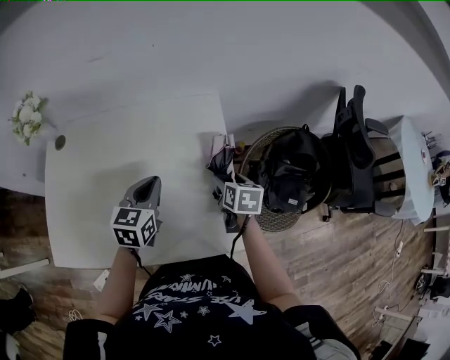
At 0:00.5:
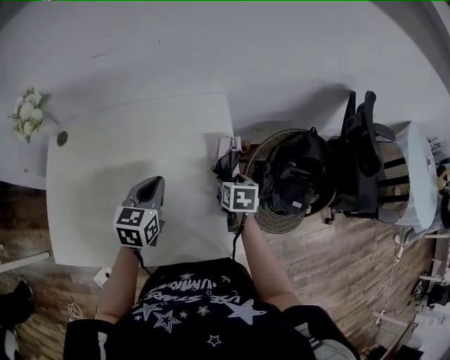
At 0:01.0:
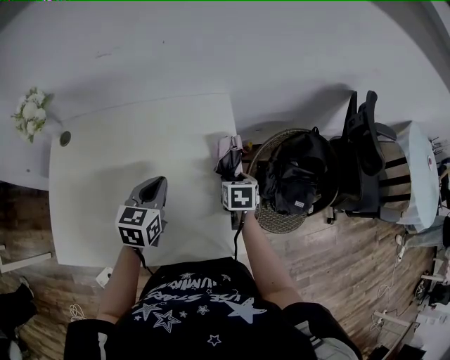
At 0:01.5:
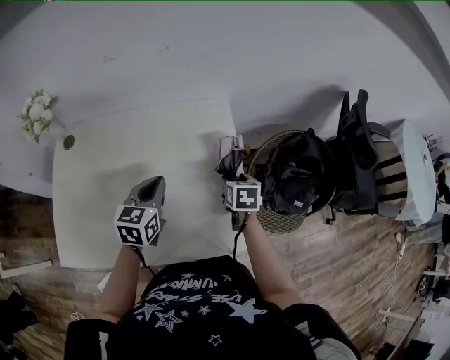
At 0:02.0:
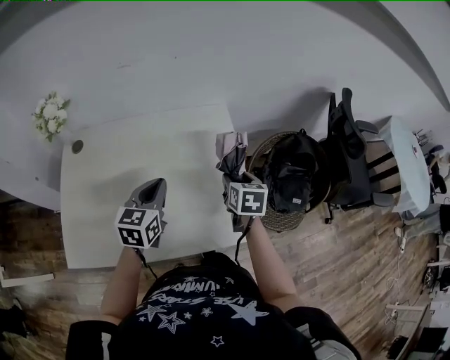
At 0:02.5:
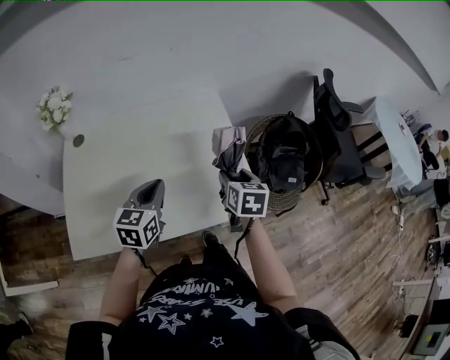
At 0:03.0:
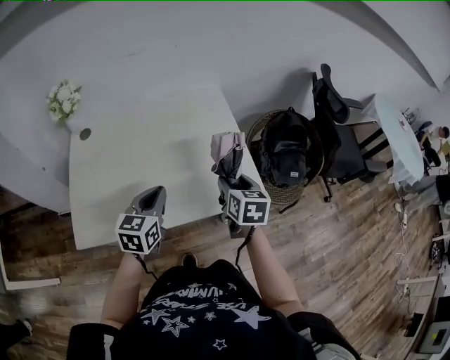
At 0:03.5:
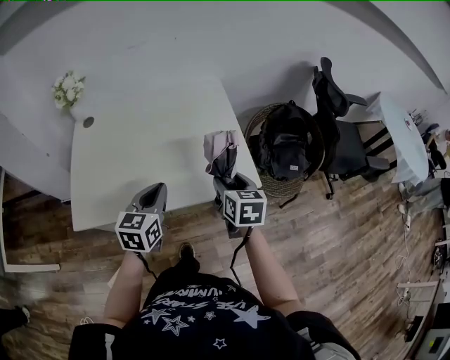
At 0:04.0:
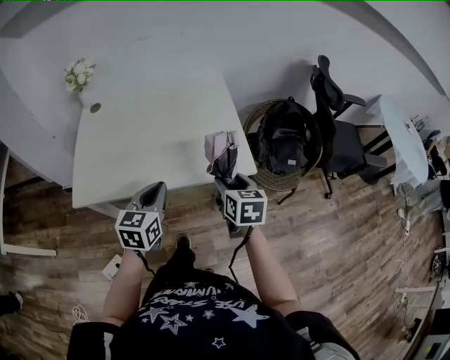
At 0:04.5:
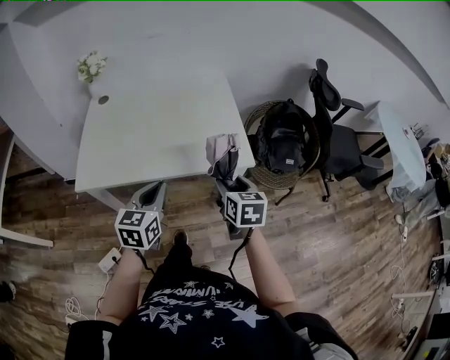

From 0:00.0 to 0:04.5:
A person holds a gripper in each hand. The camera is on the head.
From 0:00.0 to 0:02.0: The right gripper is displaced upward by roughly 5 cm, while the left gripper ends up about 10 cm from where it was.
From 0:02.0 to 0:04.5: Both grippers travel together backward, about 35 cm.

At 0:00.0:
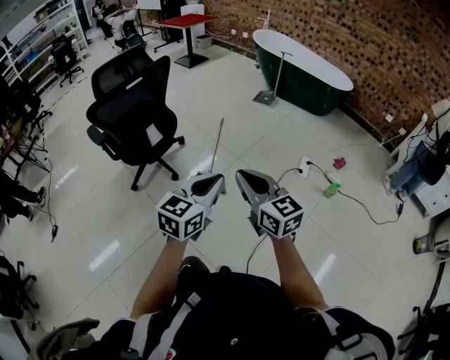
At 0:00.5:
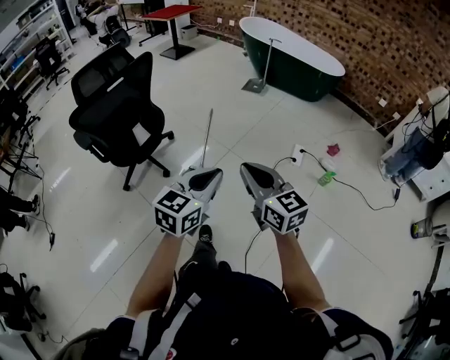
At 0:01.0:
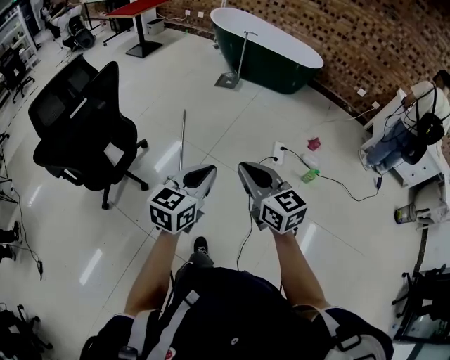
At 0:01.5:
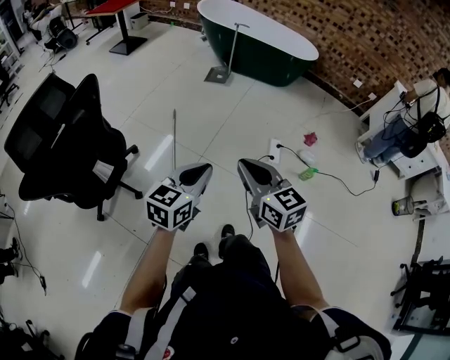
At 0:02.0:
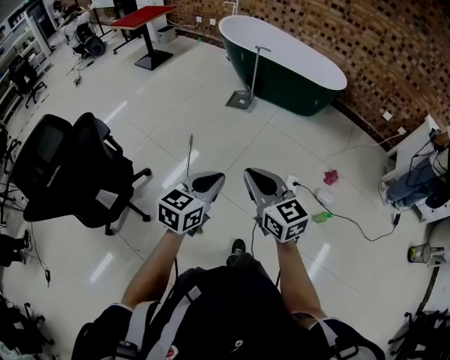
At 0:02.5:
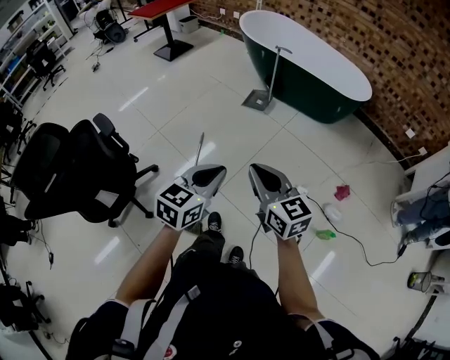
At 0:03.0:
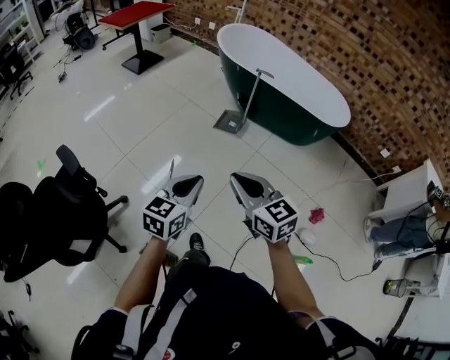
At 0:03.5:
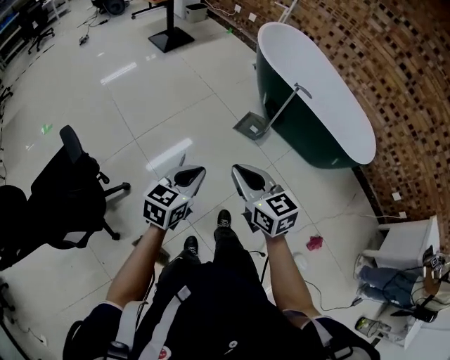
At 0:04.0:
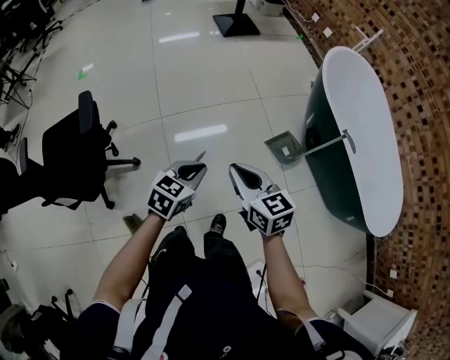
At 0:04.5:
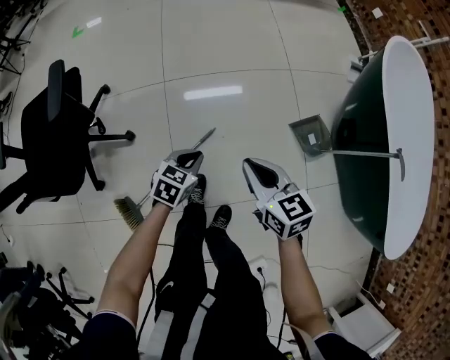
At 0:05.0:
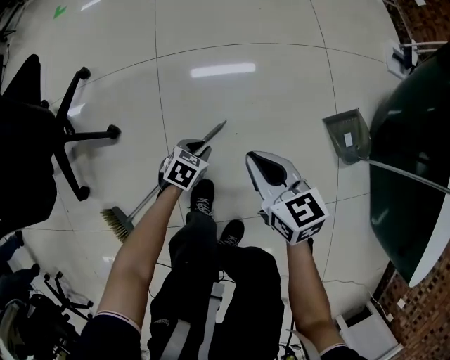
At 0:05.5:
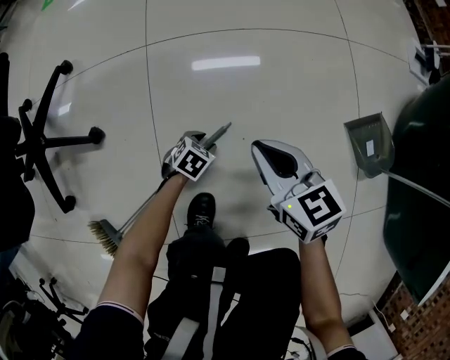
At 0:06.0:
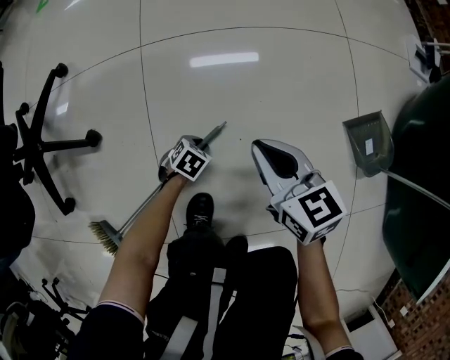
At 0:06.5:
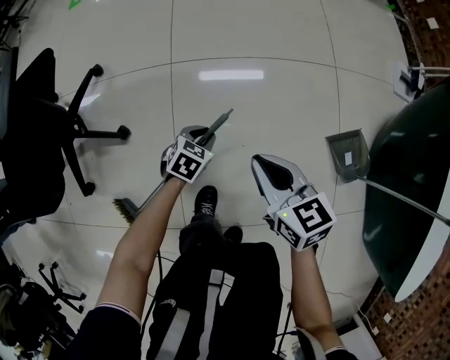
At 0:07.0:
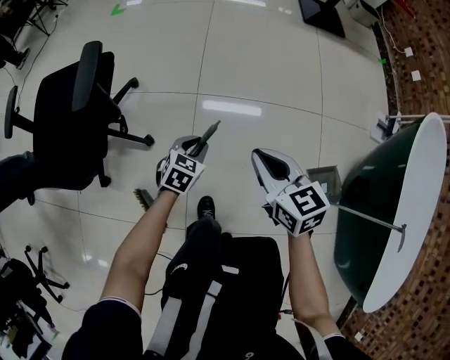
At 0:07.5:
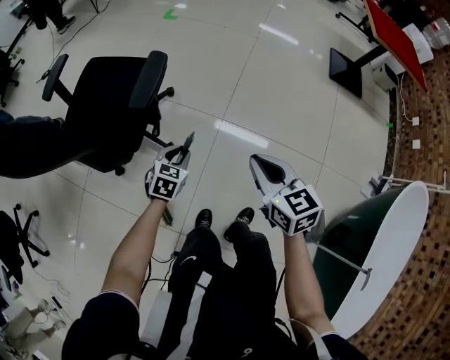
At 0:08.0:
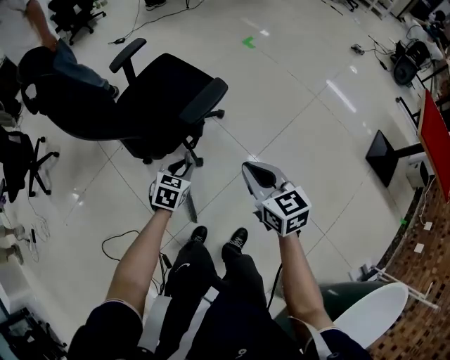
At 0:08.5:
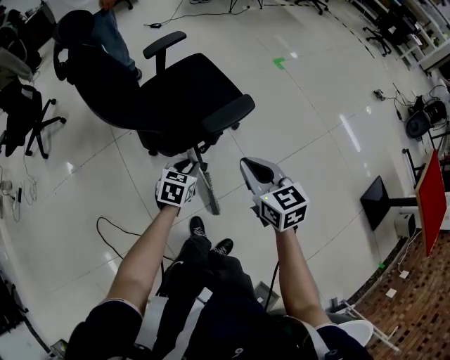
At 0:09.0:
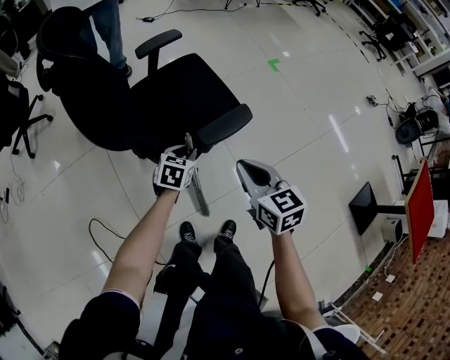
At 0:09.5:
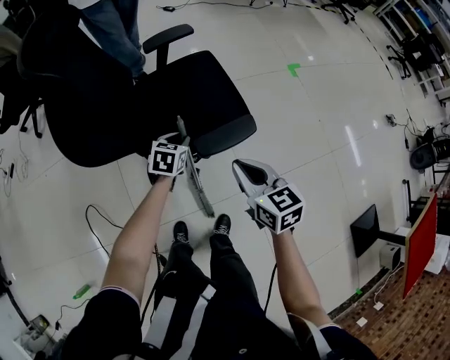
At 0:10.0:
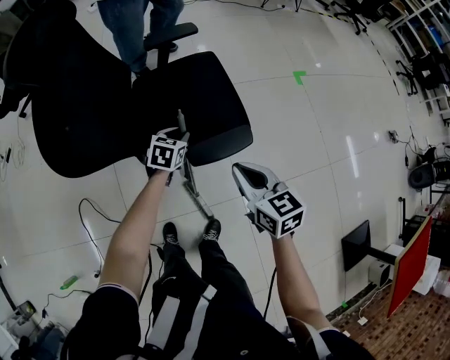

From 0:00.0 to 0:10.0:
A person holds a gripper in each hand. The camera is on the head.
From 0:00.0 to 0:02.0: The pair of grippers is taken forward, roughly 40 cm.
From 0:02.0 to 0:04.0: Both grippers are carried roughly 60 cm. The right gripper changes its angle by approximately 40 degrees. The left gripper rotates roughly 40 degrees.
From 0:04.0 to 0:06.0: The grippers both shift downward by roughly 60 cm. The left gripper tilts its fingers some 30 degrees downward, and opens its fingers.
From 0:06.0 to 0:08.0: Both grippers move upward, roughly 60 cm. The left gripper changes its angle by some 70 degrees, while the right gripper turns by about 50 degrees.
From 0:08.0 to 0:10.0: The left gripper moves some 25 cm, and changes its angle by roughly 30 degrees; the right gripper changes place by roughly 20 cm, and swivels about 30 degrees.

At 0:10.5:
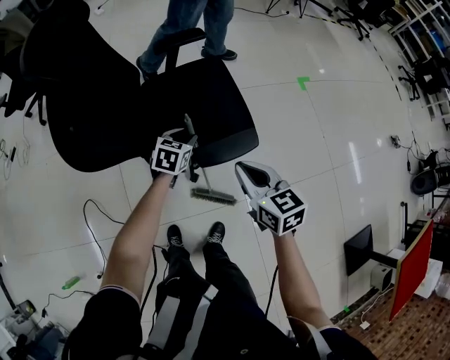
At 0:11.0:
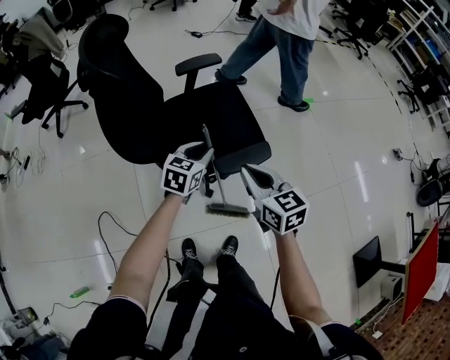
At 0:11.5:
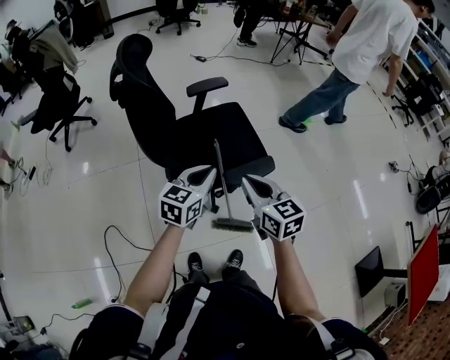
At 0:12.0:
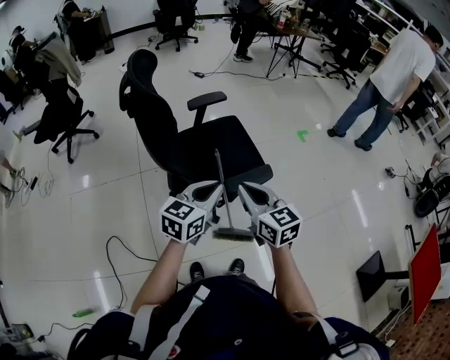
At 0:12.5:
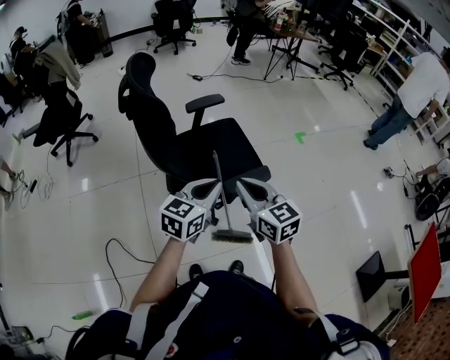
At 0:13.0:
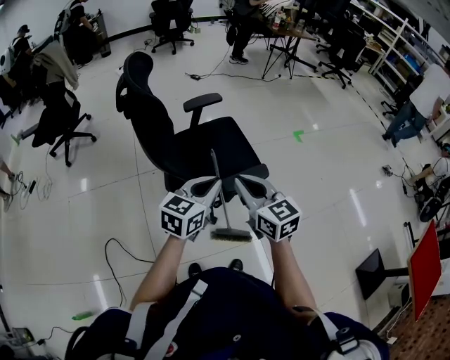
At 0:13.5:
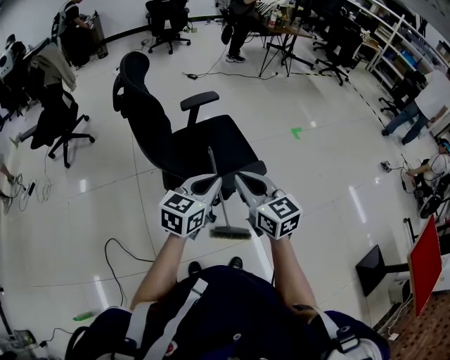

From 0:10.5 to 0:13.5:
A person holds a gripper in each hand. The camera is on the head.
From 0:10.5 to 0:12.0: The left gripper travels upward and backward by approximately 30 cm, swivels some 30 degrees, and closes, while the right gripper moves upward, to the left and backward, some 15 cm.
From 0:12.0 to 0:13.5: The grippers move only a little.

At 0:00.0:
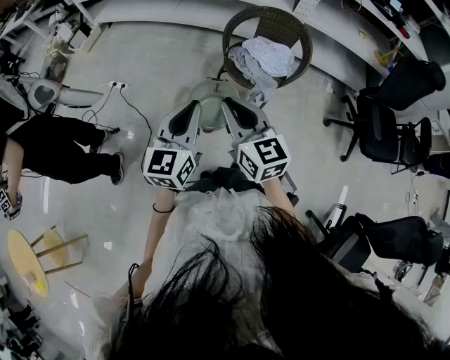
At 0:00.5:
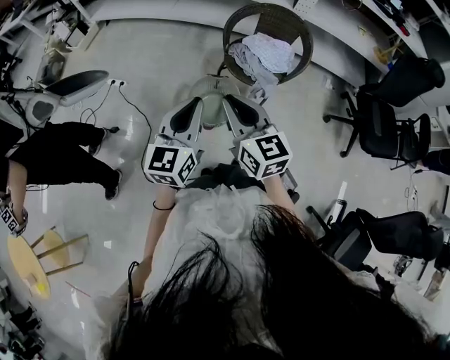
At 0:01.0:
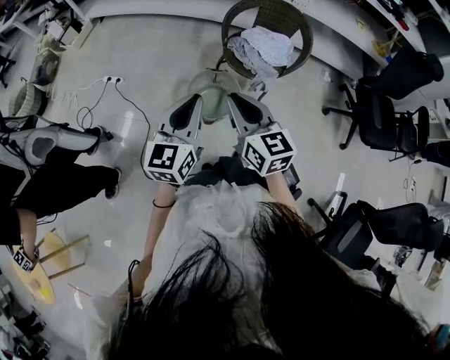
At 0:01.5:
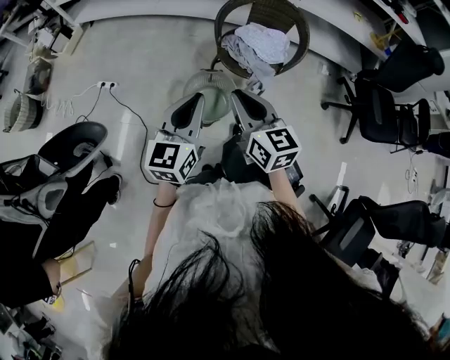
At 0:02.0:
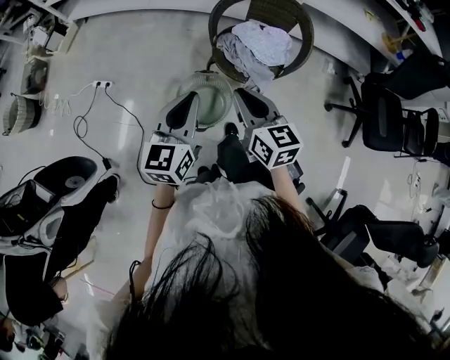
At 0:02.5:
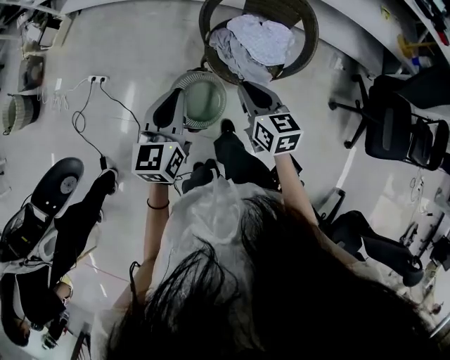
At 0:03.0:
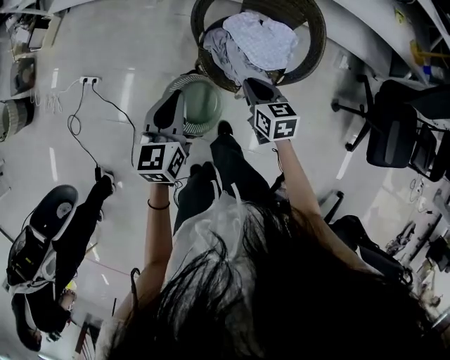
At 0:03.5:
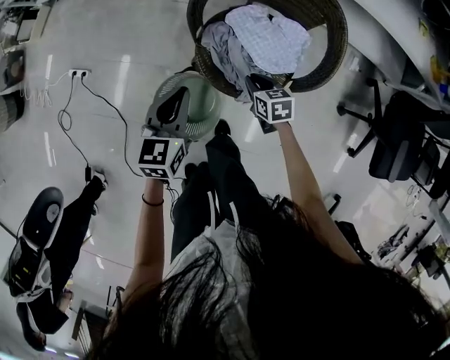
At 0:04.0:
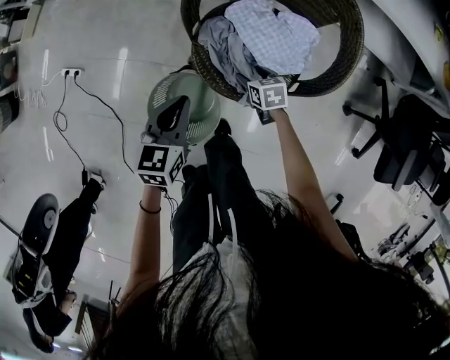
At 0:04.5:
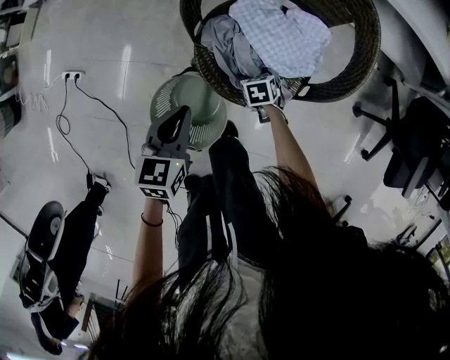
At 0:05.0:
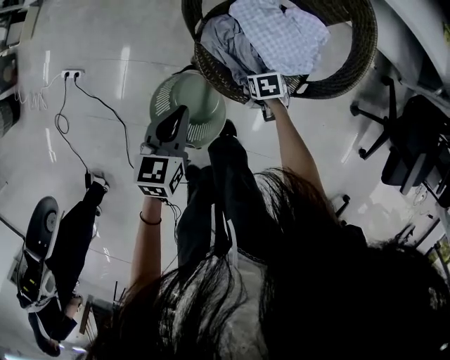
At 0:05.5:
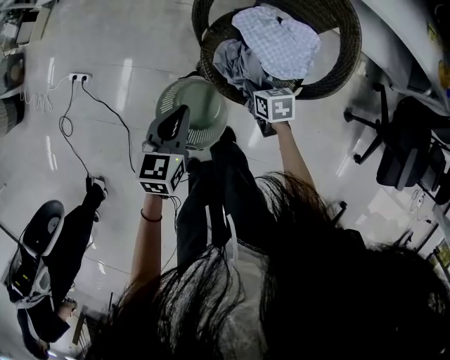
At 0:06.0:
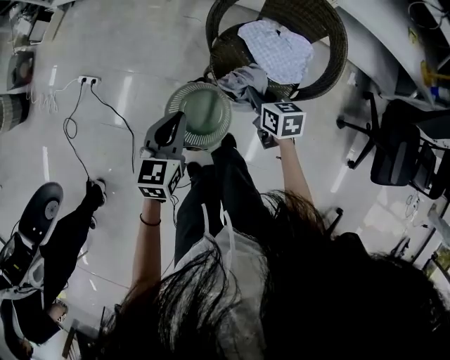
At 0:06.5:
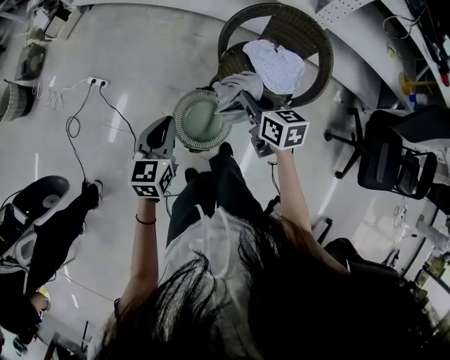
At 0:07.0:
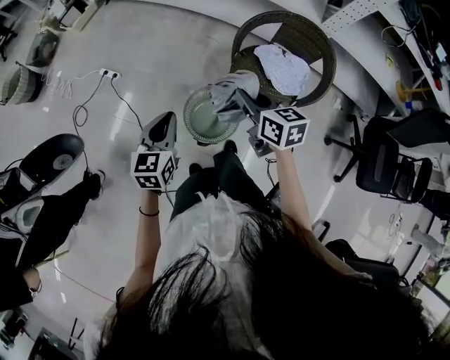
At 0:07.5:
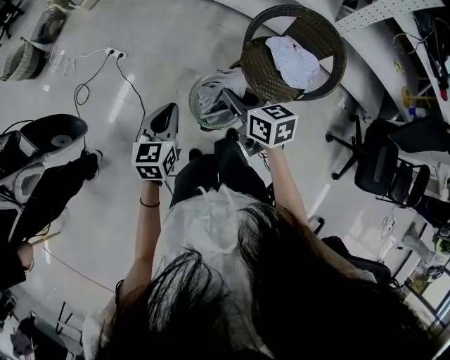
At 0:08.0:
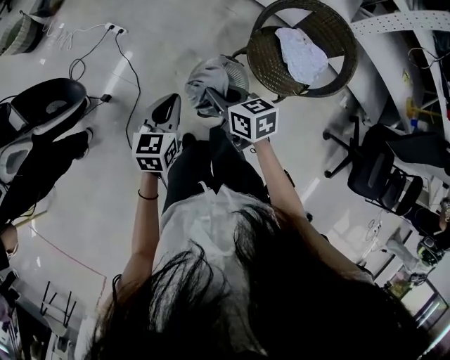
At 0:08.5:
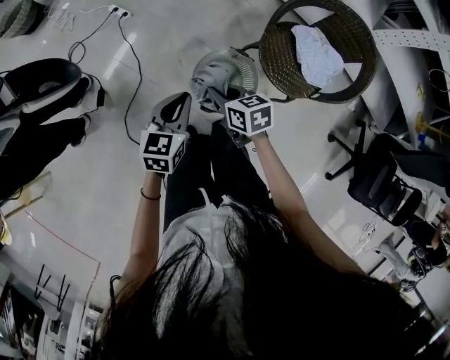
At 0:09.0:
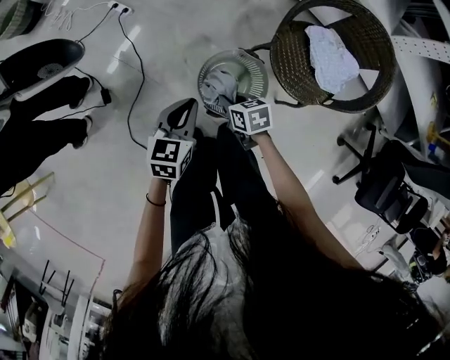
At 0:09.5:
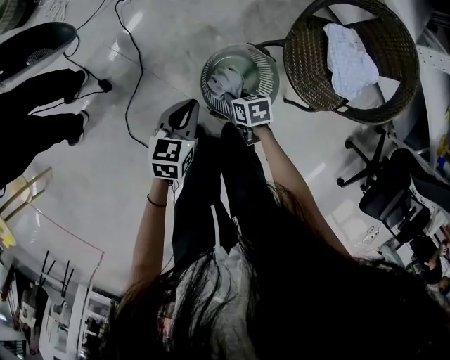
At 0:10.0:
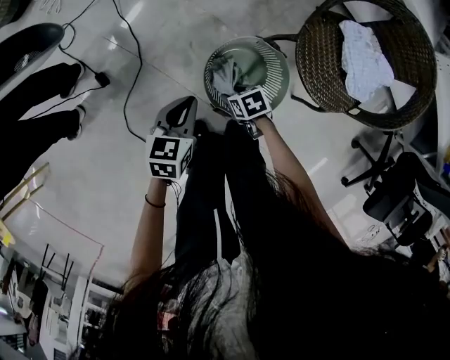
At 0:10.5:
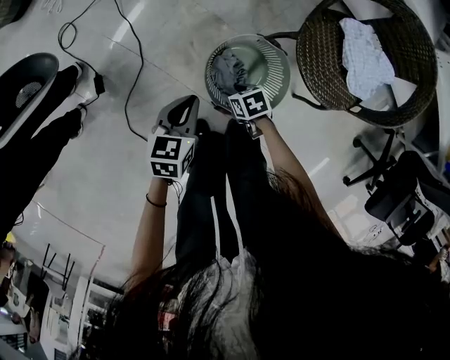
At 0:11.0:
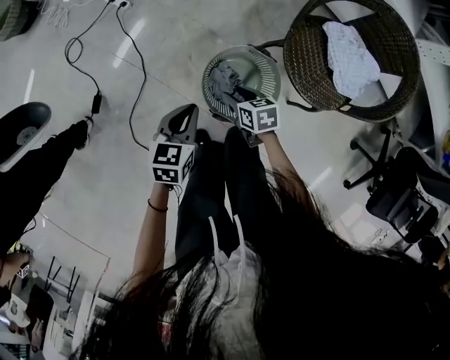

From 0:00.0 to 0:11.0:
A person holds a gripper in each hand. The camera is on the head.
From 0:00.0 to 0:02.0: The left gripper goes approximately 15 cm forward. The right gripper travels forward, downward and to the right by about 20 cm.
From 0:02.0 to 0:03.5: Both grippers move downward, forward and to the right, roughly 40 cm. The right gripper angles its fingers downward, by approximately 30 degrees, while the left gripper turns by roughly 20 degrees.
From 0:03.5 to 0:05.5: The left gripper shifts roughly 5 cm downward; the right gripper moves about 20 cm downward and comes back, and opens and closes again.
From 0:05.5 to 0:07.5: The right gripper is displaced upward, to the left and backward by some 50 cm, and rotates about 30 degrees, while the left gripper goes roughly 35 cm to the left, backward and upward, and swivels roughly 20 degrees.
From 0:07.5 to 0:09.0: The left gripper is displaced downward by about 15 cm. Meanwhile the right gripper is displaced downward by approximately 30 cm, and turns by approximately 30 degrees.
From 0:09.0 to 0:11.0: Both grippers travel together downward, approximately 10 cm. The right gripper opens its fingers.
